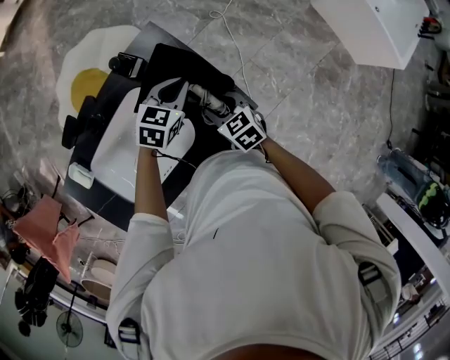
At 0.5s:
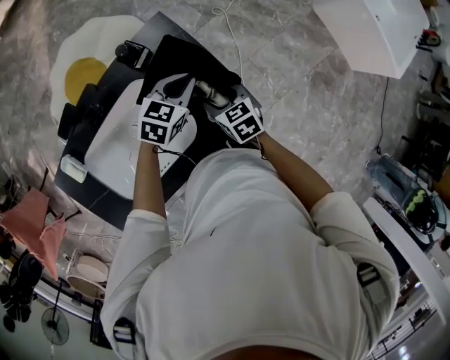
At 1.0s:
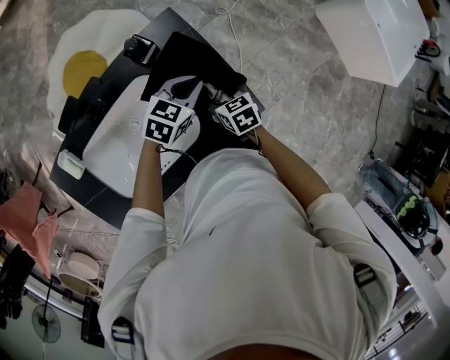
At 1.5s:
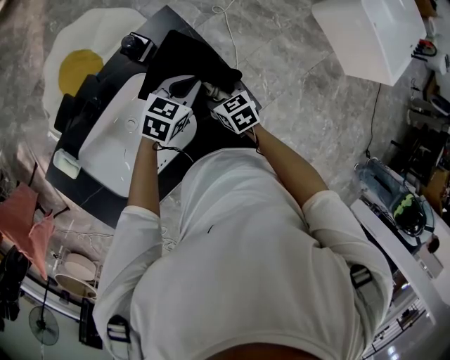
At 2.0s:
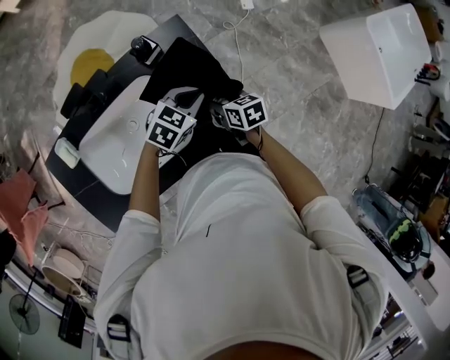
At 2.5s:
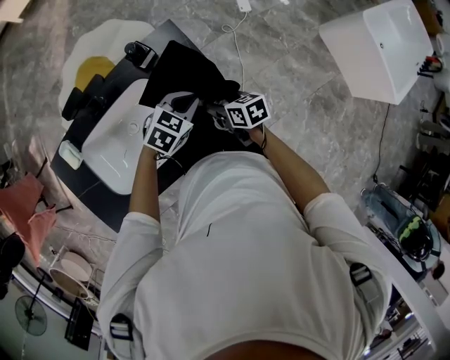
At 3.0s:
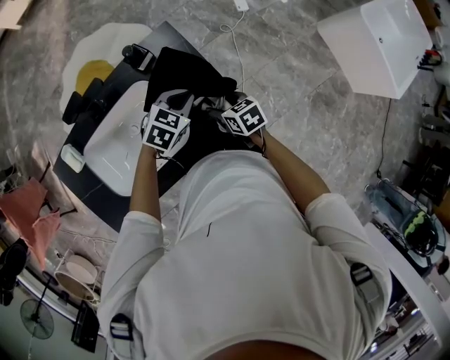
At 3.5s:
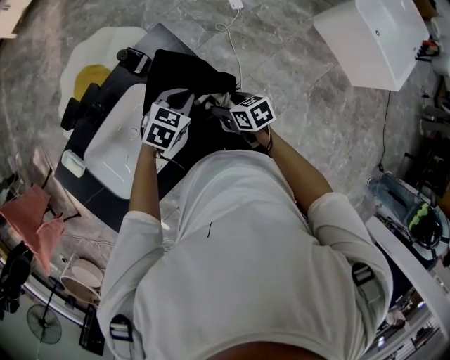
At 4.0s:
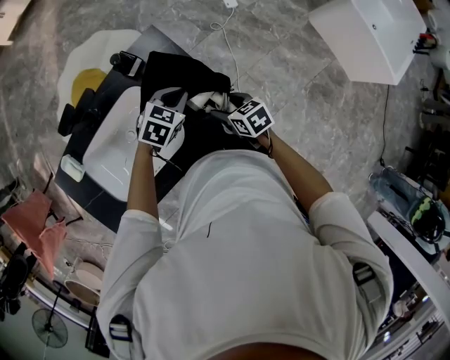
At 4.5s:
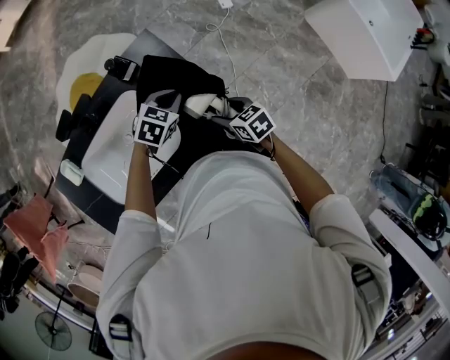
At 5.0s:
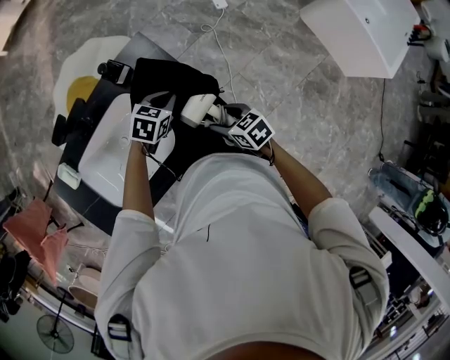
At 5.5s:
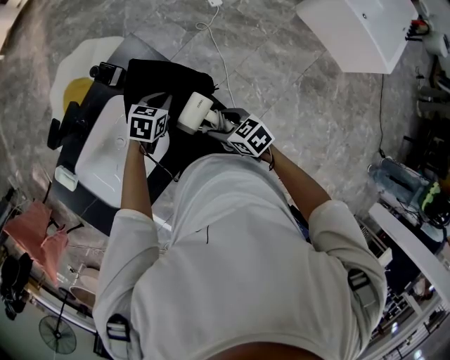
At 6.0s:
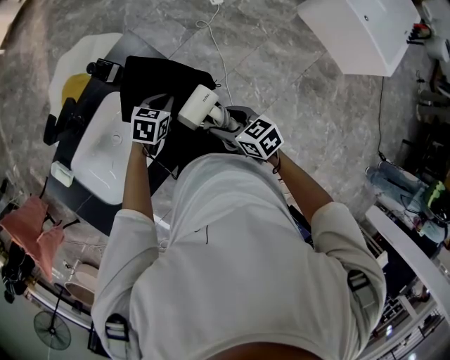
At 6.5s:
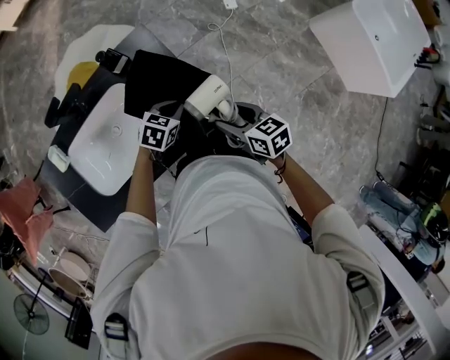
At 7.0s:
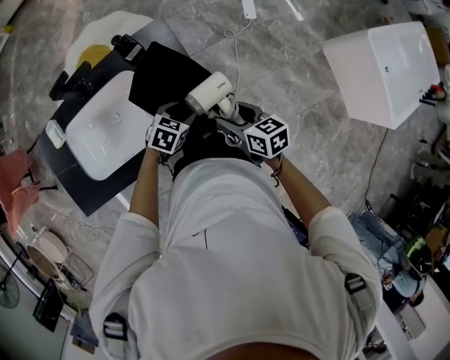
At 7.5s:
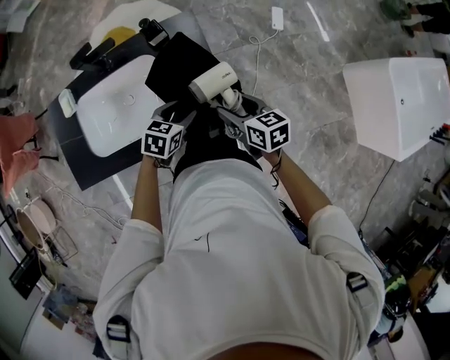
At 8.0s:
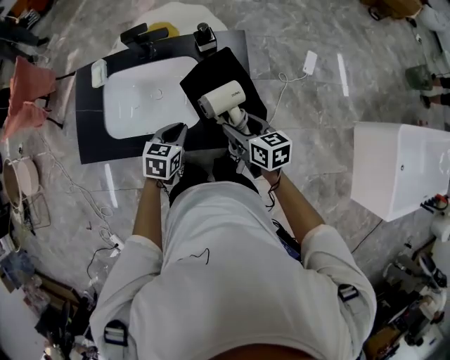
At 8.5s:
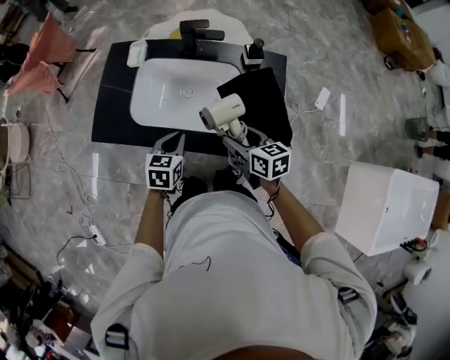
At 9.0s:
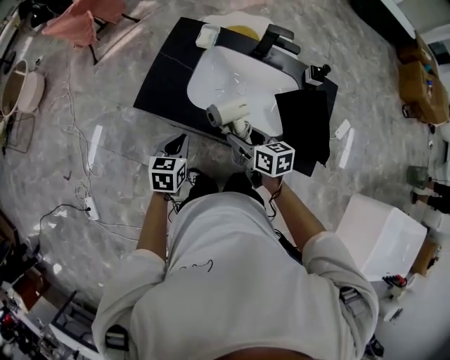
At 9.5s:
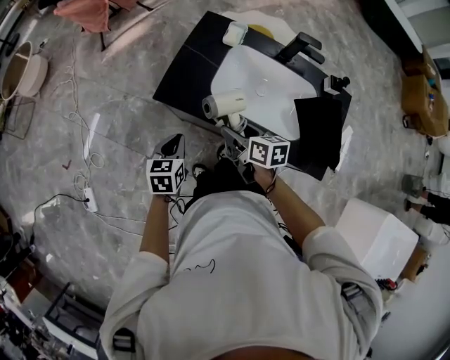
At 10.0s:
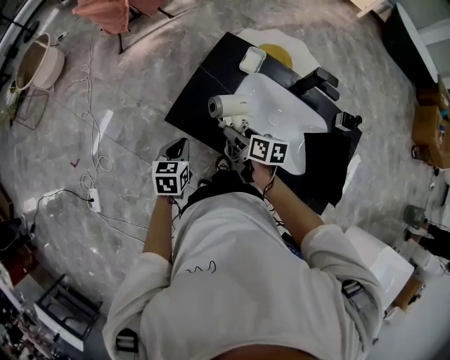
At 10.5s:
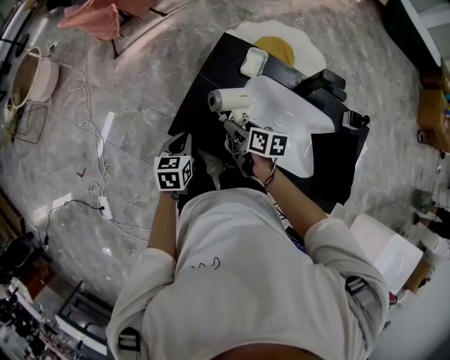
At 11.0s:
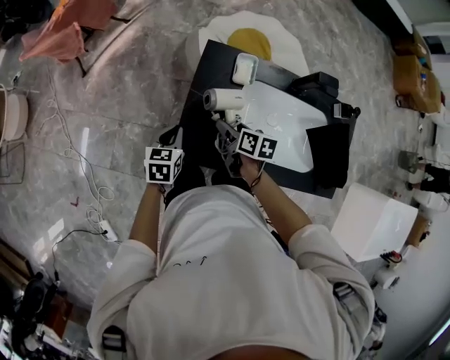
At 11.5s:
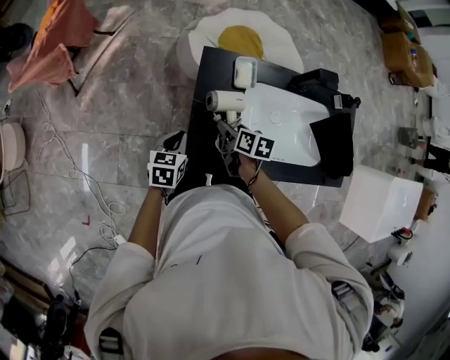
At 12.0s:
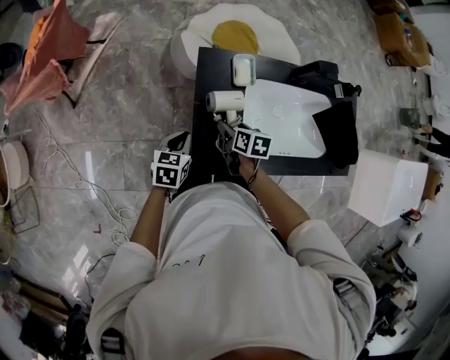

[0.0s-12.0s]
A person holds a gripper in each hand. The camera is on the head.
2.0s to 4.0s: The right gripper shifts roughly 5 cm to the right.
4.0s to 6.0s: The left gripper travels downward by approximately 5 cm. The right gripper is displaced backward, upward and to the right by about 10 cm.
6.0s to 8.0s: The right gripper shifts by approximately 10 cm, and turns by about 20 degrees. Meanwhile the left gripper changes place by about 20 cm, rotates some 50 degrees, and opens, then closes once more.
8.0s to 10.0s: The two grippers travel together, approximately 50 cm. The left gripper changes its angle by approximately 40 degrees. The right gripper rotates approximately 20 degrees.
10.0s to 12.0s: The left gripper shifts by about 25 cm, and turns by some 40 degrees; the right gripper changes place by roughly 20 cm, and rotates about 40 degrees.

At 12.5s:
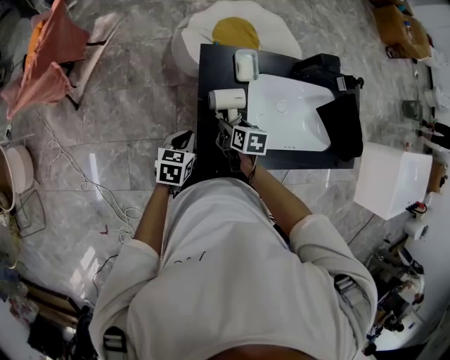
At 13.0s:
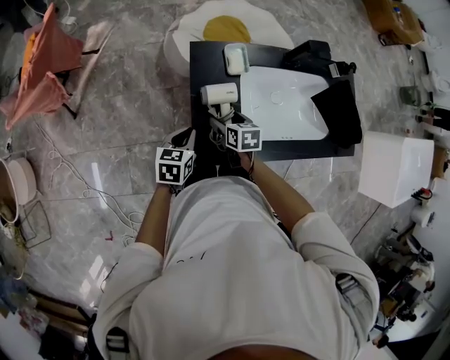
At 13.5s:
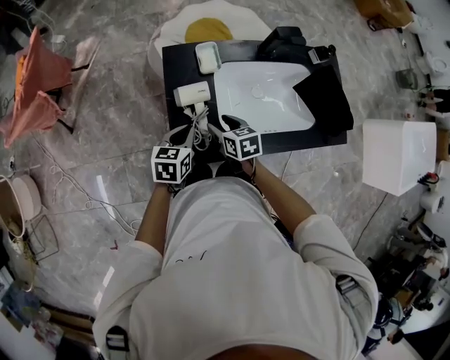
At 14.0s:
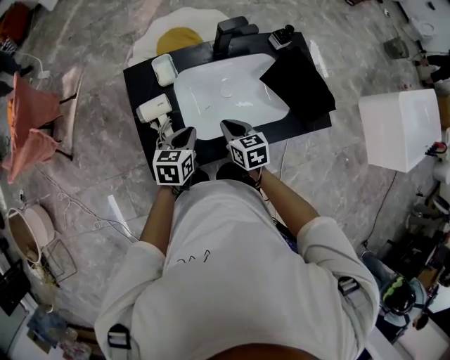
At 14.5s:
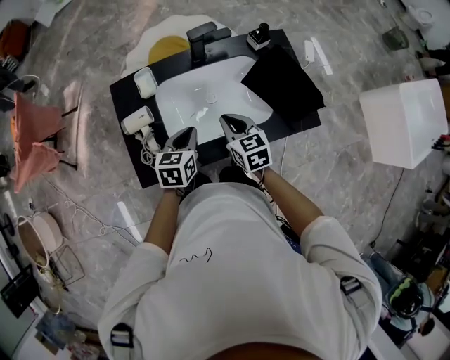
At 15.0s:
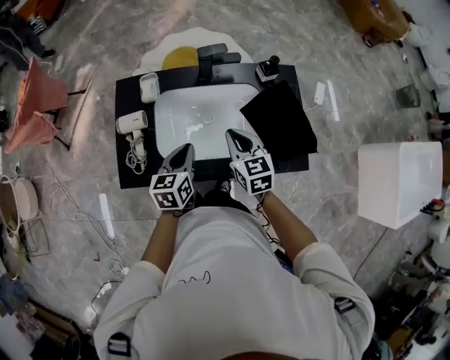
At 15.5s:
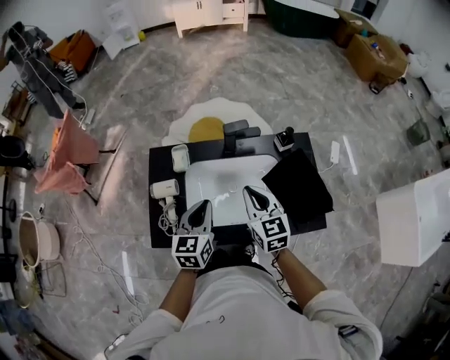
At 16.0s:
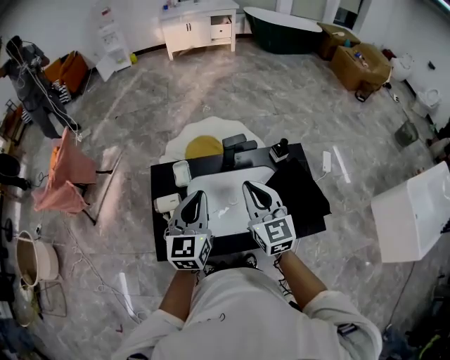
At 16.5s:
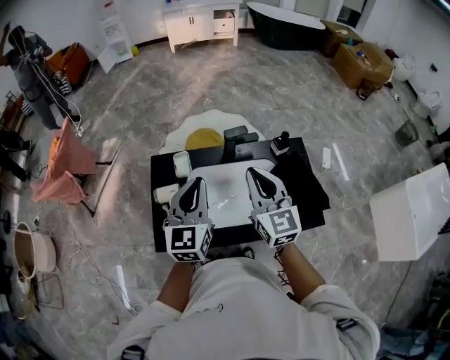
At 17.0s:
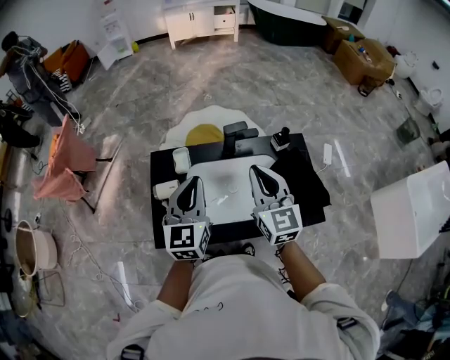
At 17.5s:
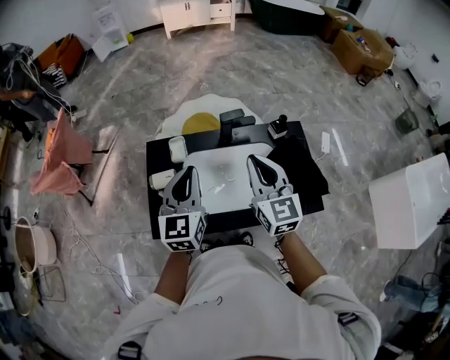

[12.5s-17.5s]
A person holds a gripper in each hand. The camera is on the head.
12.5s to 15.0s: The left gripper is displaced to the right by approximately 35 cm; the right gripper moves to the right and upward, some 40 cm, turns by approximately 40 degrees, and closes.
15.0s to 17.5s: Both grippers travel together upward, about 20 cm. The right gripper rotates approximately 20 degrees, while the left gripper changes its angle by roughly 30 degrees.

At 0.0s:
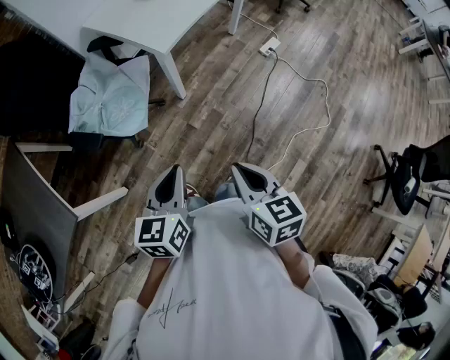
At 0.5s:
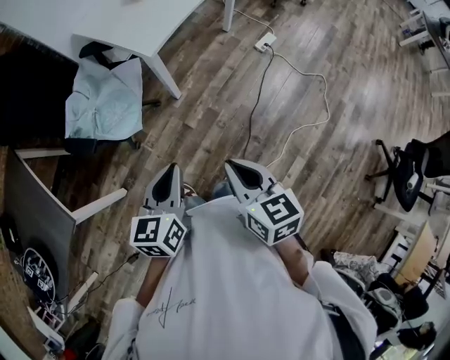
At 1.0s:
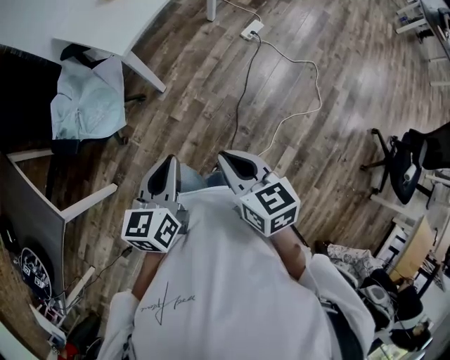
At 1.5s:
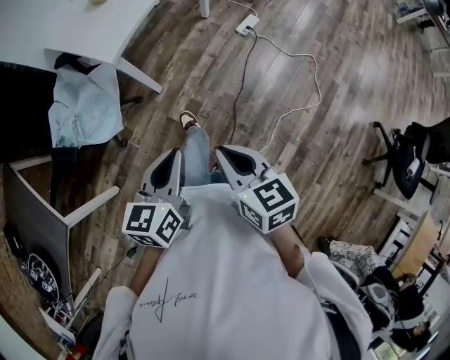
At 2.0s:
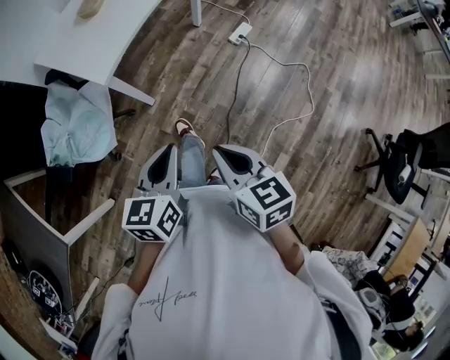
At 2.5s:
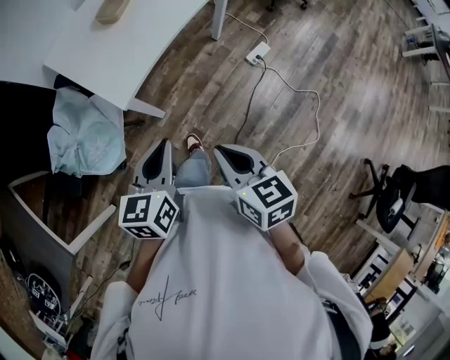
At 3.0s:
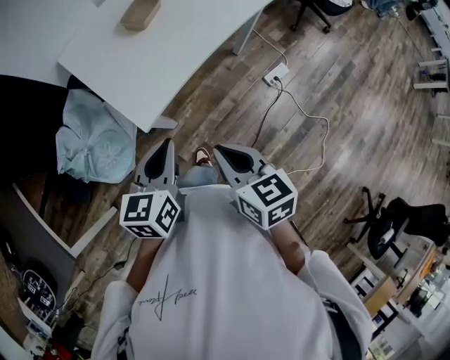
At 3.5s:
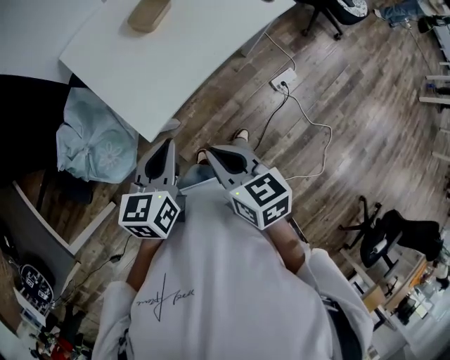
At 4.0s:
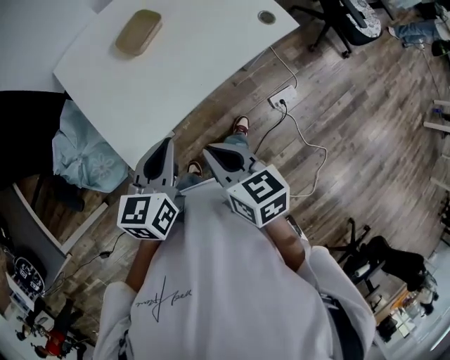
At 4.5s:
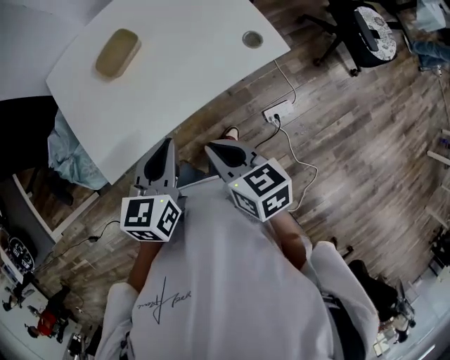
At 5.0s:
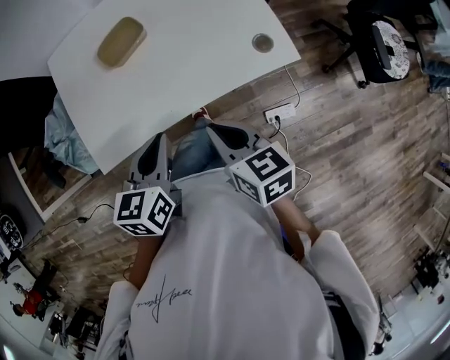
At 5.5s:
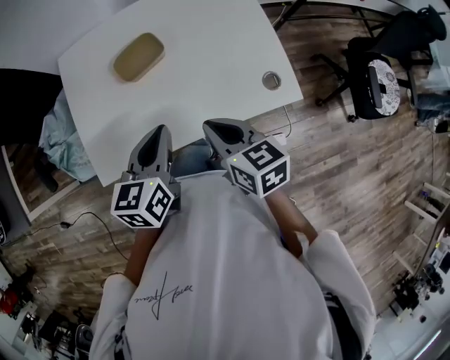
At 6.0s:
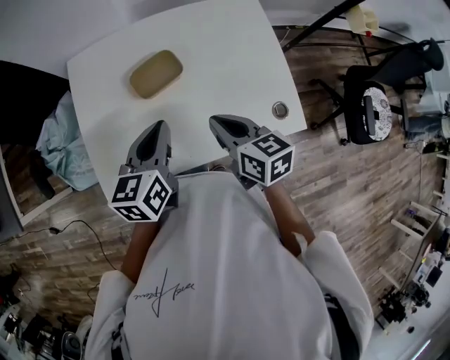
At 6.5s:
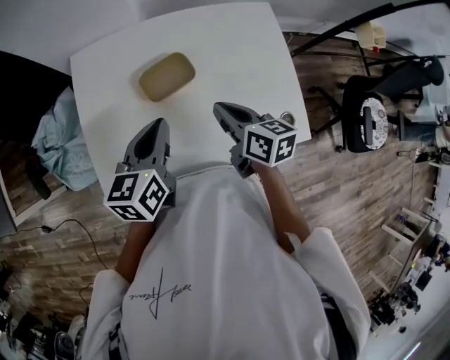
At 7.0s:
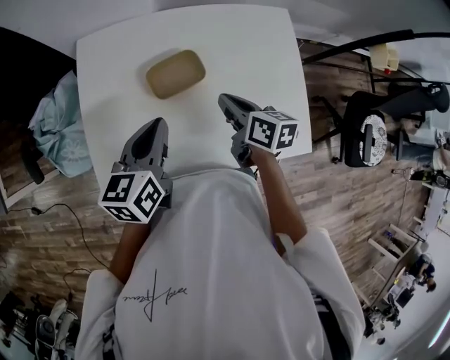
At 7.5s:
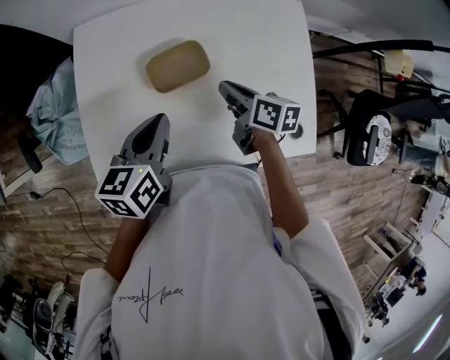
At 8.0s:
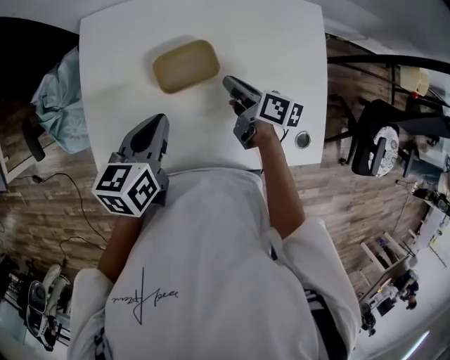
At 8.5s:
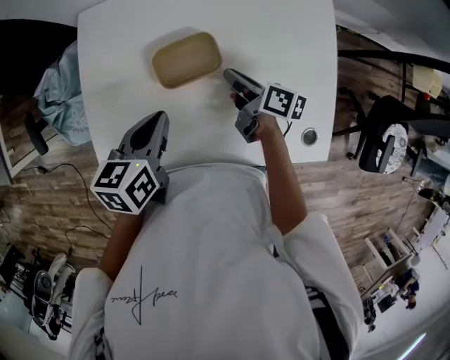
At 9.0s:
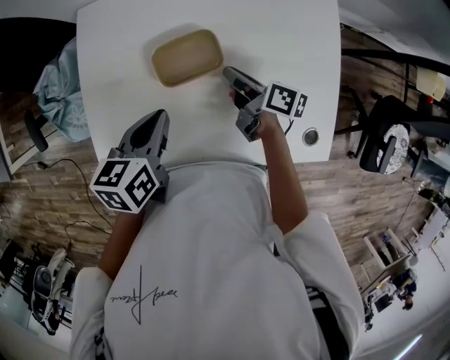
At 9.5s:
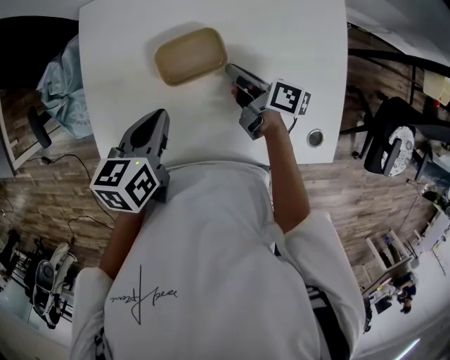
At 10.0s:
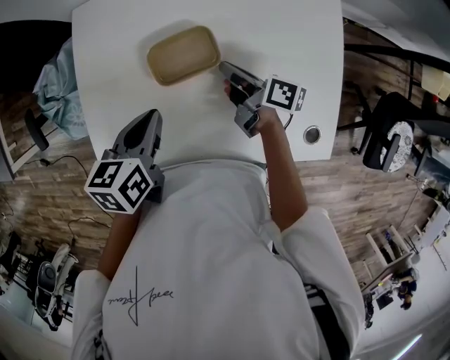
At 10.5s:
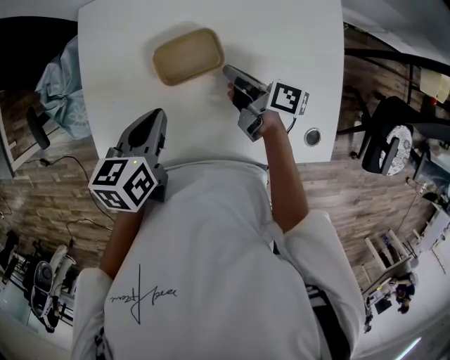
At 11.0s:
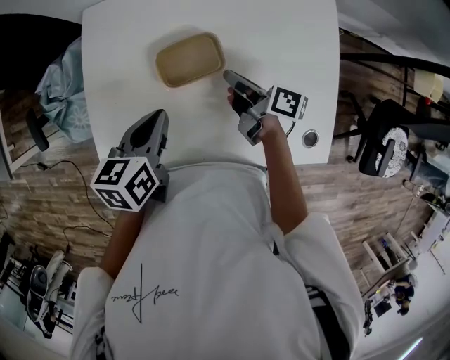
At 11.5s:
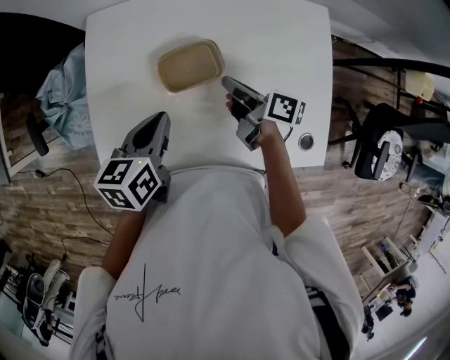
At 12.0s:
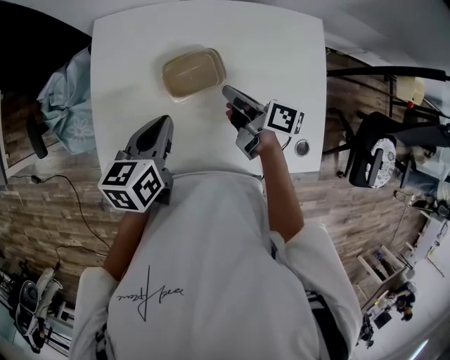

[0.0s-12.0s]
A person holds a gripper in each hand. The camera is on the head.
0.0s to 2.0s: Both grippers travel together to the right and forward, roughly 20 cm.
2.0s to 4.0s: Both grippers are carried forward, approximately 40 cm. The left gripper turns by about 20 degrees. The right gripper turns by about 30 degrees.
4.0s to 6.0s: Both grippers travel together forward and to the right, approximately 25 cm. The right gripper turns by some 20 degrees, while the left gripper rotates approximately 30 degrees.
6.0s to 8.0s: The right gripper goes some 20 cm forward and downward, and rotates approximately 30 degrees, while the left gripper shifts some 10 cm forward and downward.
8.0s to 10.0s: There are only small adjustments of the grippers.
10.0s to 12.0s: The right gripper is displaced upward by approximately 5 cm.
